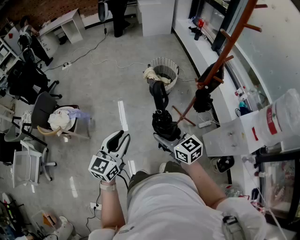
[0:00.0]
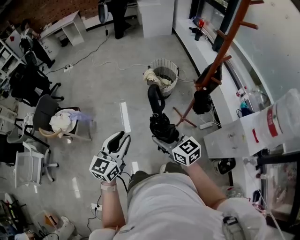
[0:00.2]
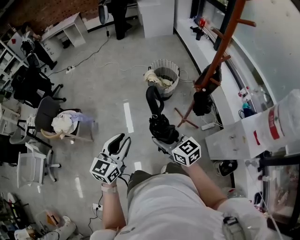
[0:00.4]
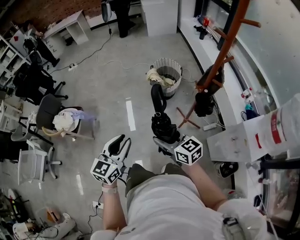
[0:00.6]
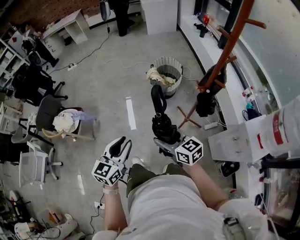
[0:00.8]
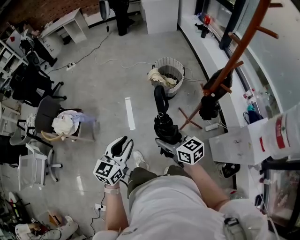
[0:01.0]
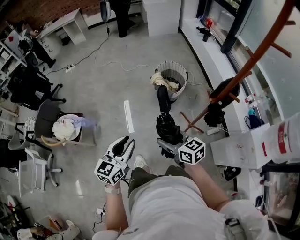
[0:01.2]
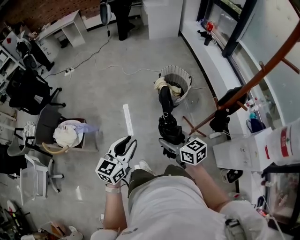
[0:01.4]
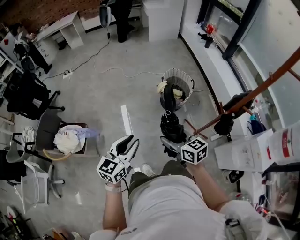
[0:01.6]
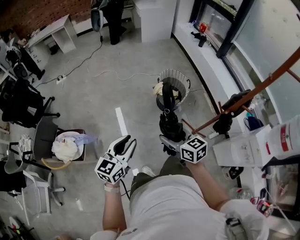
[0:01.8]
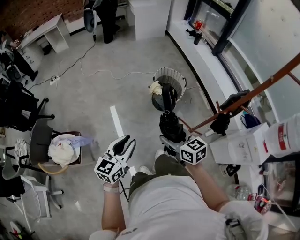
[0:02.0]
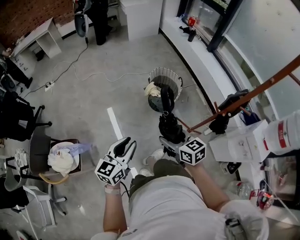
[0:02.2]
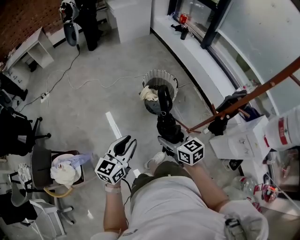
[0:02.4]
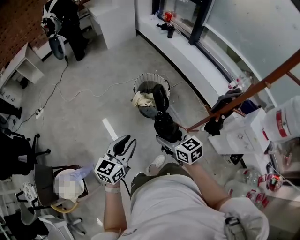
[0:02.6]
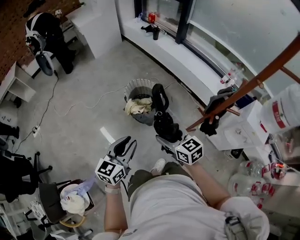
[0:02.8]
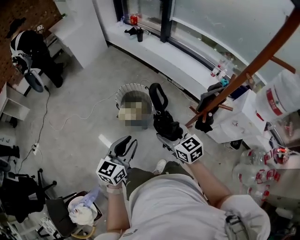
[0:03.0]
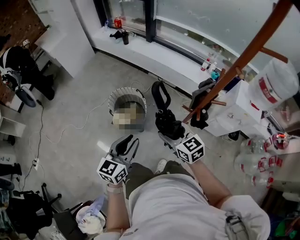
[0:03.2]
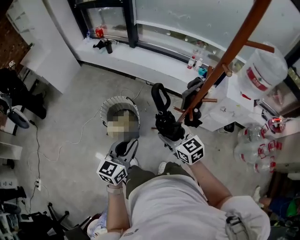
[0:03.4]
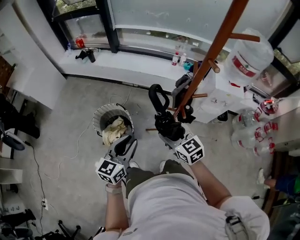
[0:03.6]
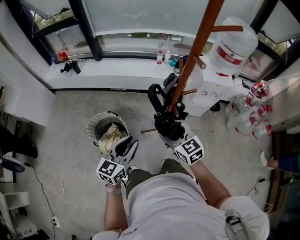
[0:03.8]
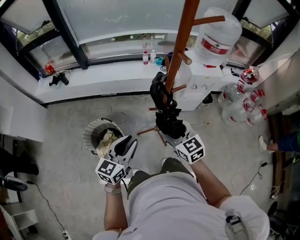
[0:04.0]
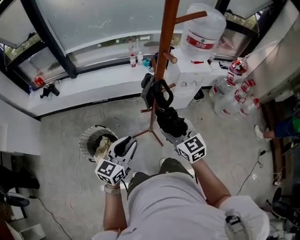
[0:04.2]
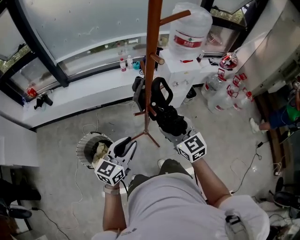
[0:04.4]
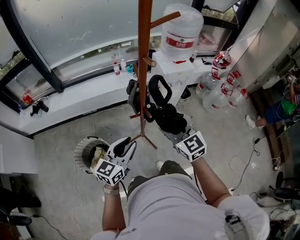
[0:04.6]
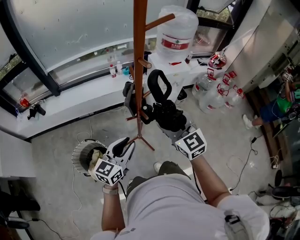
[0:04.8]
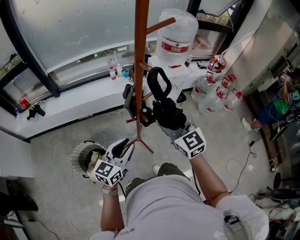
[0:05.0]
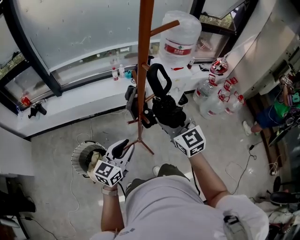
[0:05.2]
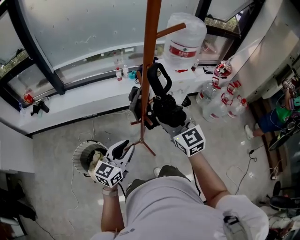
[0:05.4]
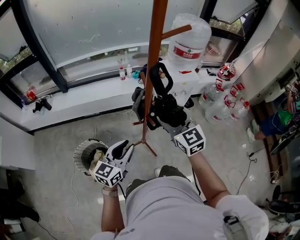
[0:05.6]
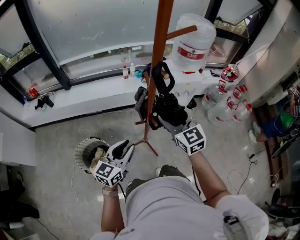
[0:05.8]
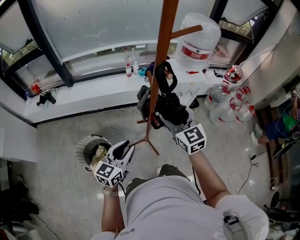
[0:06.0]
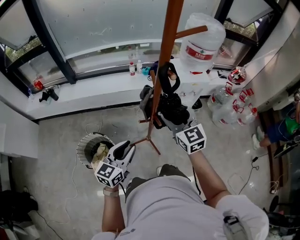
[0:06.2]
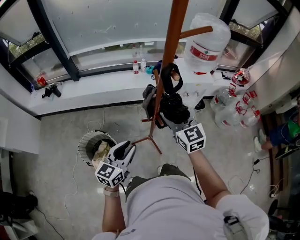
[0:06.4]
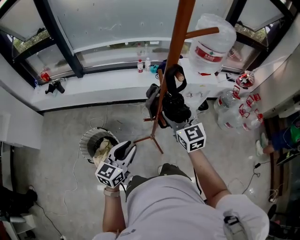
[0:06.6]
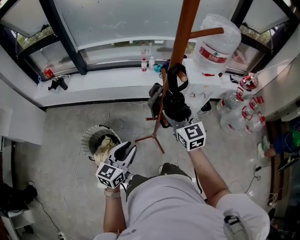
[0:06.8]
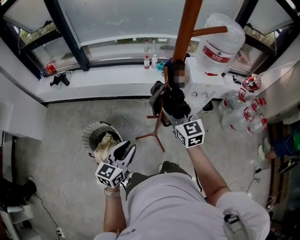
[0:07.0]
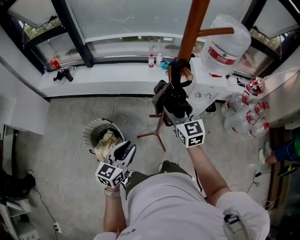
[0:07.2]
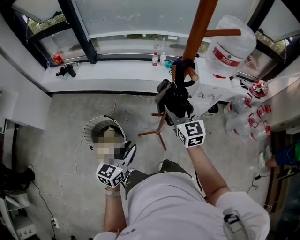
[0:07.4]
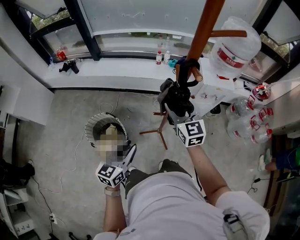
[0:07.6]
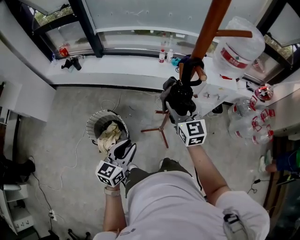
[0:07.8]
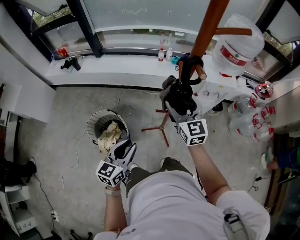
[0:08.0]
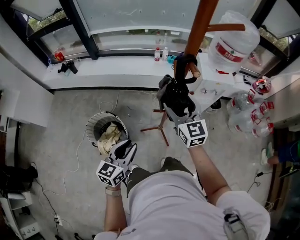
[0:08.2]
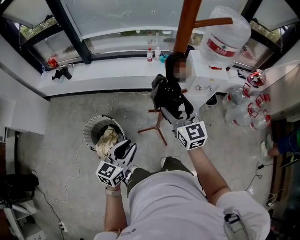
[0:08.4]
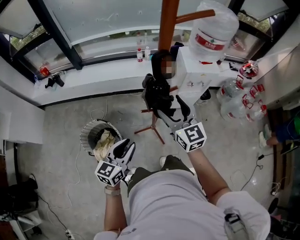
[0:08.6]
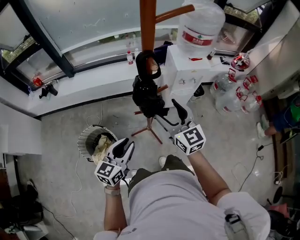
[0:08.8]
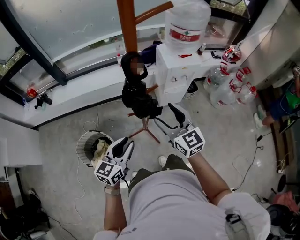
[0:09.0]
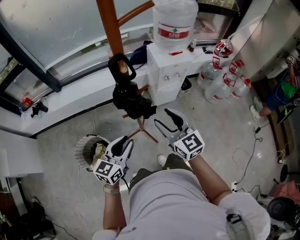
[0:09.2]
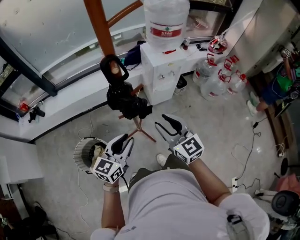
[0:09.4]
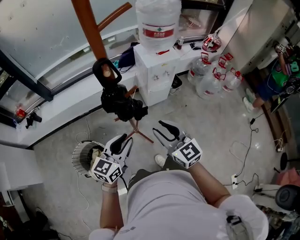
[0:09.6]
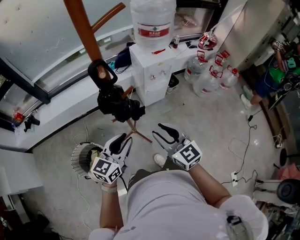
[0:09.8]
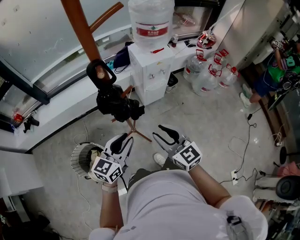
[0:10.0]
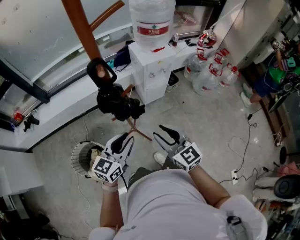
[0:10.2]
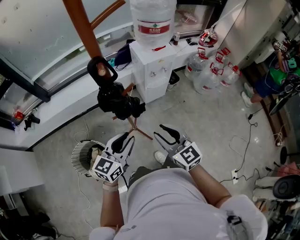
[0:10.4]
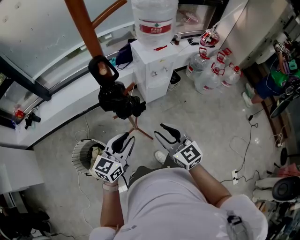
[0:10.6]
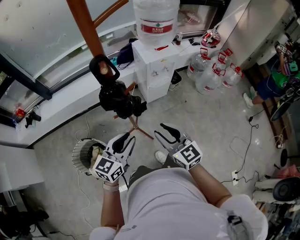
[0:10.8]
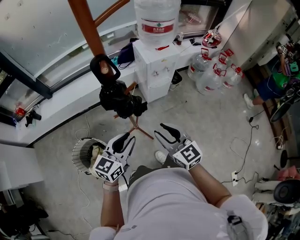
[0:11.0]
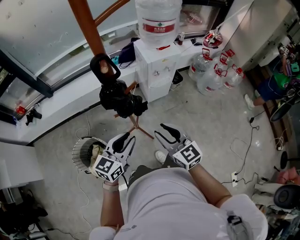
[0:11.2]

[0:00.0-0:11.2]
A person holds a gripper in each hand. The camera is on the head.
0:00.0 to 0:01.6: Both grippers move forward, roughly 20 cm.
0:01.6 to 0:03.2: The left gripper changes place by about 35 cm, and changes its angle by approximately 40 degrees. Meanwhile the right gripper moves roughly 30 cm, and changes its angle by roughly 40 degrees.
0:03.2 to 0:04.8: The right gripper ends up about 20 cm from where it was, and changes its angle by approximately 60 degrees. The left gripper moves some 15 cm, and swivels about 50 degrees.
0:04.8 to 0:06.4: The right gripper is displaced forward by some 10 cm.
0:06.4 to 0:08.0: The left gripper changes place by approximately 5 cm. Meanwhile the right gripper shifts by approximately 5 cm.
0:08.0 to 0:09.6: The right gripper shifts about 20 cm backward and to the right, and closes up; the left gripper travels to the right and forward by approximately 15 cm, and turns by about 30 degrees.
0:09.6 to 0:11.2: The grippers make only small movements.

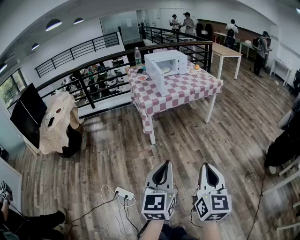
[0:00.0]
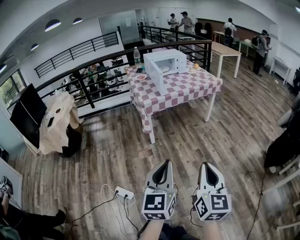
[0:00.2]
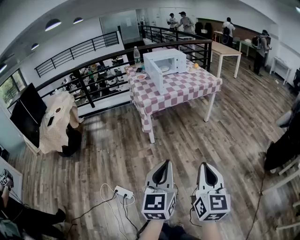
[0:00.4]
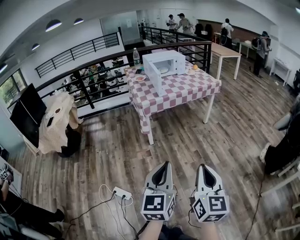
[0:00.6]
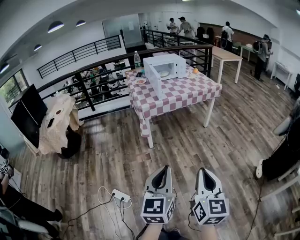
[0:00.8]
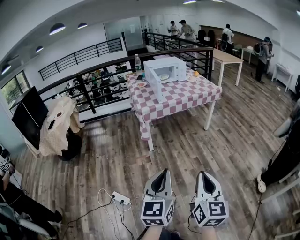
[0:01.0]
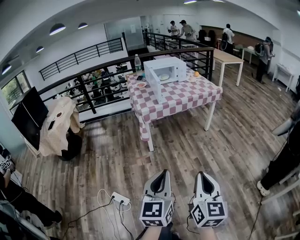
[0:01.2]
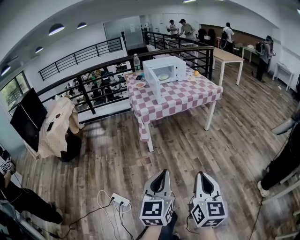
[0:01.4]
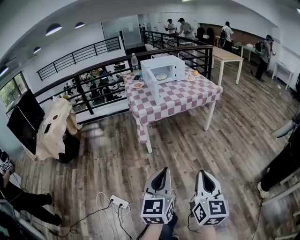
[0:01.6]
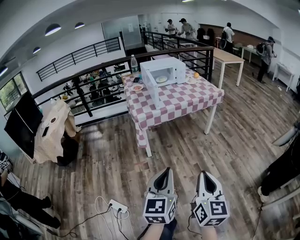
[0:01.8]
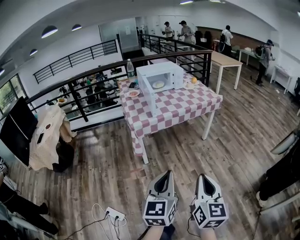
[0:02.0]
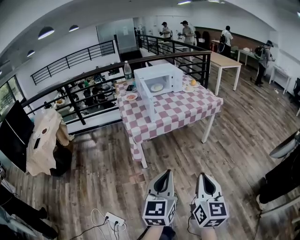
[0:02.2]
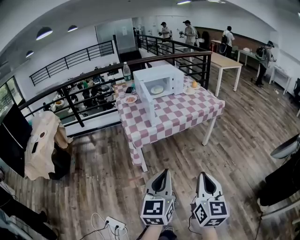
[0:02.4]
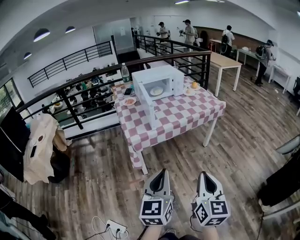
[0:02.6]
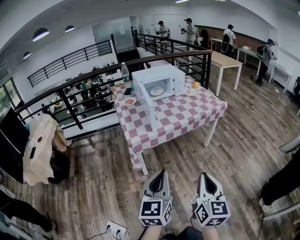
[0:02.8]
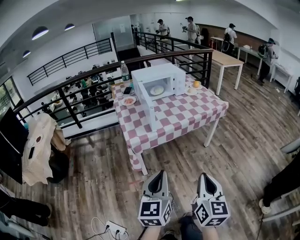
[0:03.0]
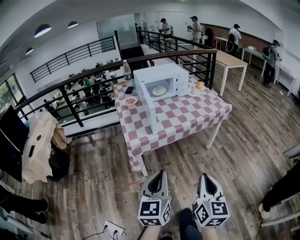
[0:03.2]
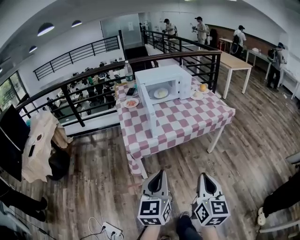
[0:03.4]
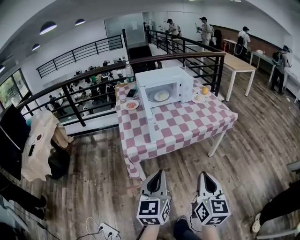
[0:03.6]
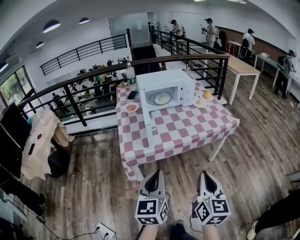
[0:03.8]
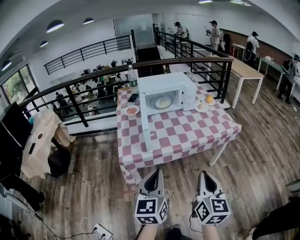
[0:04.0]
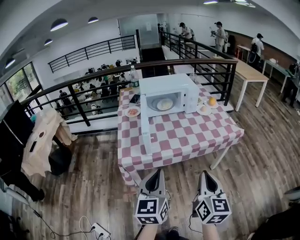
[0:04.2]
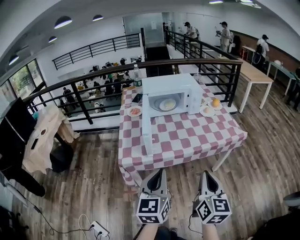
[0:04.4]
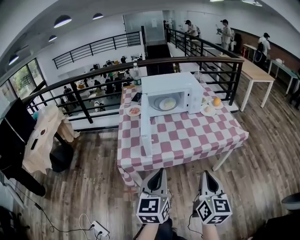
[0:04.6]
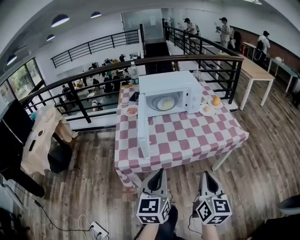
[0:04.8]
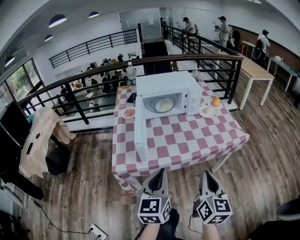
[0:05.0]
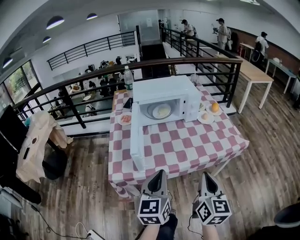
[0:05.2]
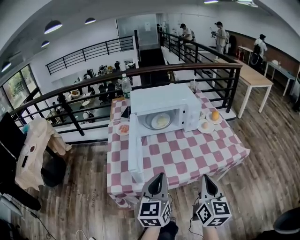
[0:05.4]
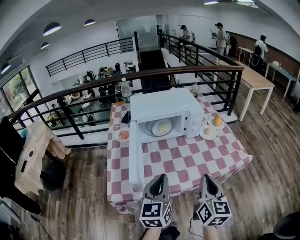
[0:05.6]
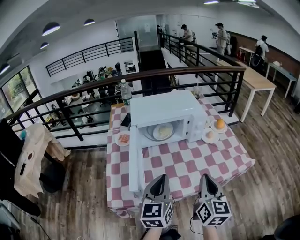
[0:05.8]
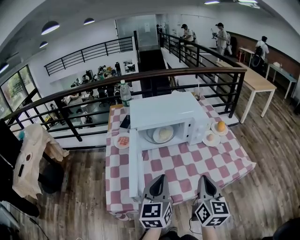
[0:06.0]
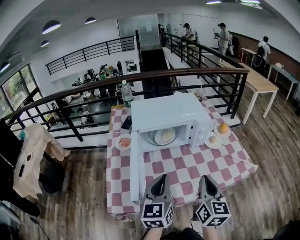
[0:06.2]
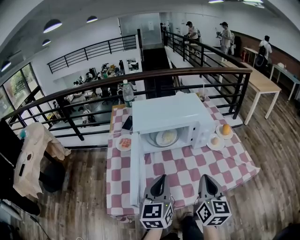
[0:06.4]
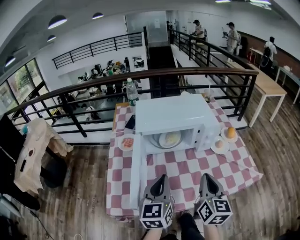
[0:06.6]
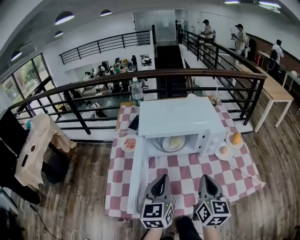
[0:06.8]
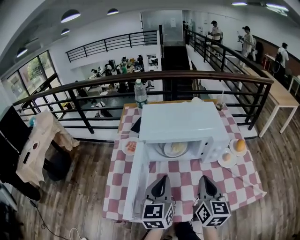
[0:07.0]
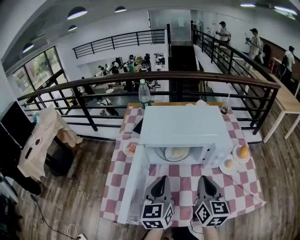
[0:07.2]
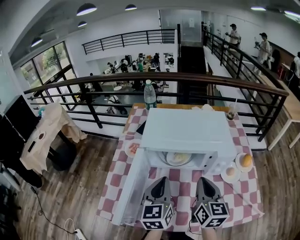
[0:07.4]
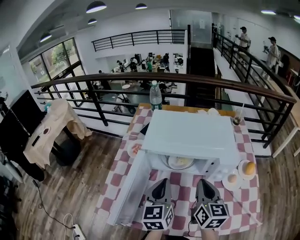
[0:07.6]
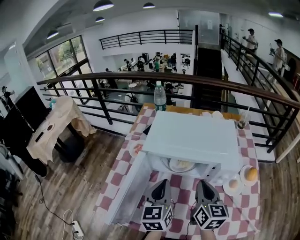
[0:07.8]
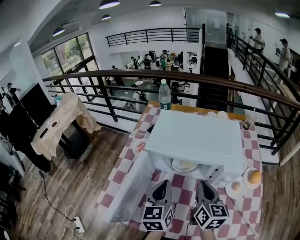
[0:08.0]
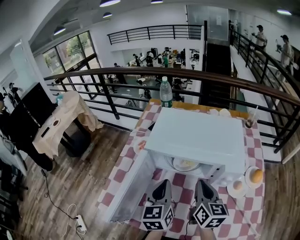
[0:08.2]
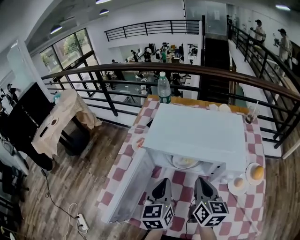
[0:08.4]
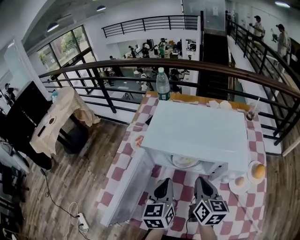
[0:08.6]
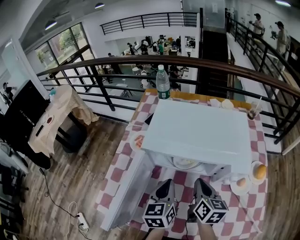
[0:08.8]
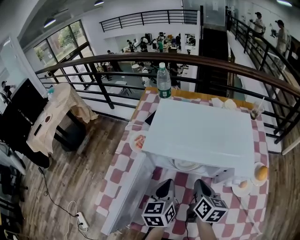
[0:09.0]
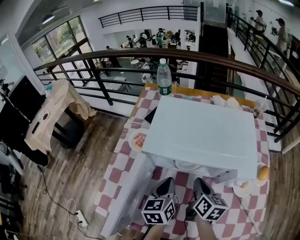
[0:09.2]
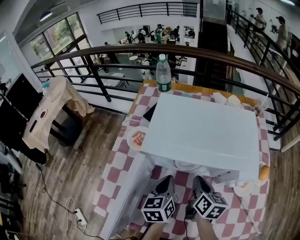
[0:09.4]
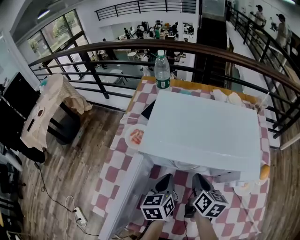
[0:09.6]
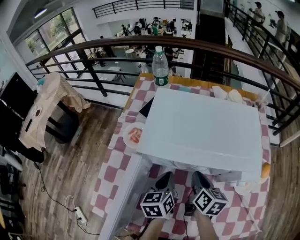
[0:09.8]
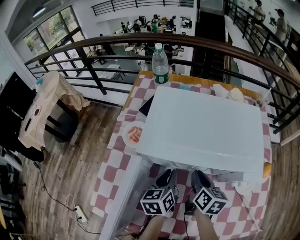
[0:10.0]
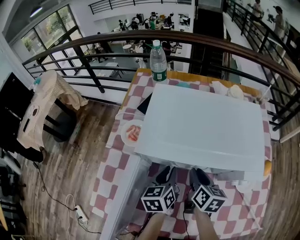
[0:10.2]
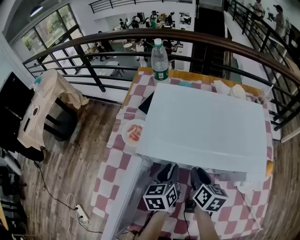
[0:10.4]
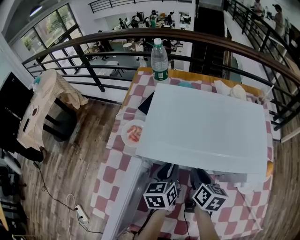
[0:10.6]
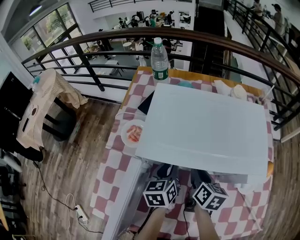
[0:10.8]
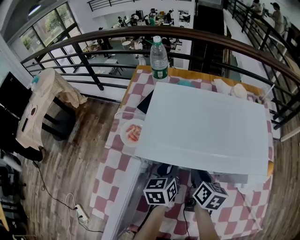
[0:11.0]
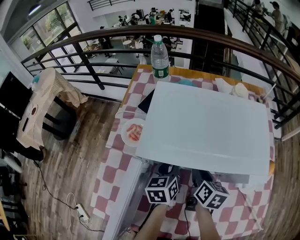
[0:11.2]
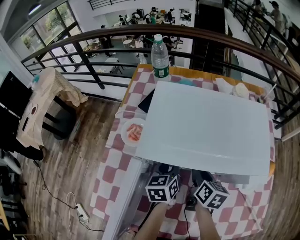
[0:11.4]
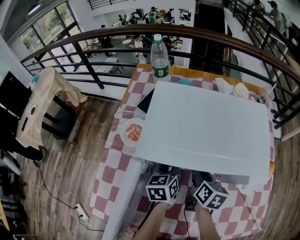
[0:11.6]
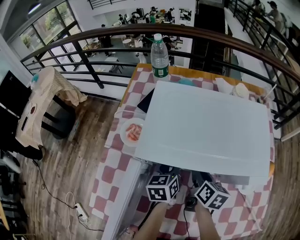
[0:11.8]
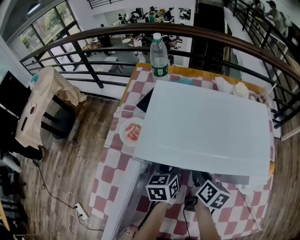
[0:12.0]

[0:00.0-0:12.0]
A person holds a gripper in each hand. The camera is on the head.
0:00.0 to 0:01.6: The grippers both shift forward and to the right by approximately 10 cm.
0:01.6 to 0:03.0: Both grippers travel together forward, approximately 30 cm.
0:03.0 to 0:04.4: Both grippers move forward, some 25 cm.
0:04.4 to 0:06.0: Both grippers move forward, approximately 30 cm.
0:06.0 to 0:07.6: The two grippers go some 20 cm forward. The left gripper changes its angle by about 20 degrees. The right gripper turns by some 20 degrees.
0:07.6 to 0:09.0: The grippers both shift downward and forward by about 10 cm. The right gripper turns by roughly 20 degrees.
0:09.0 to 0:10.4: The right gripper shifts some 10 cm downward and forward, and opens; the left gripper moves forward and downward, some 10 cm, and opens its fingers.
0:10.4 to 0:12.0: There are only small adjustments of the grippers.

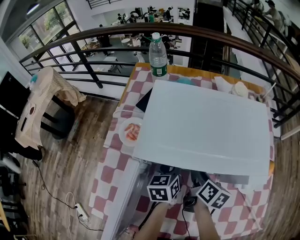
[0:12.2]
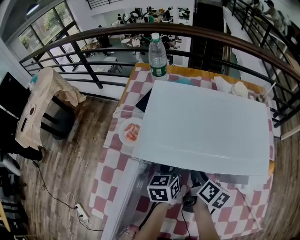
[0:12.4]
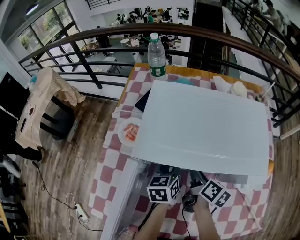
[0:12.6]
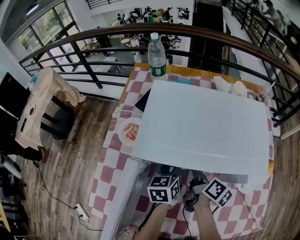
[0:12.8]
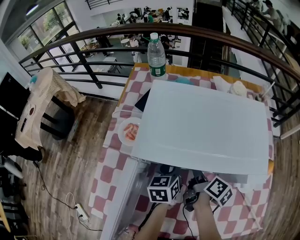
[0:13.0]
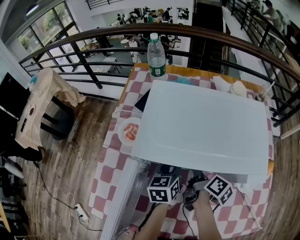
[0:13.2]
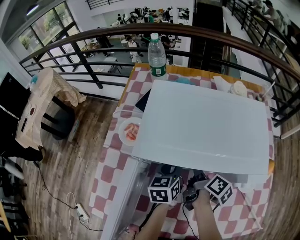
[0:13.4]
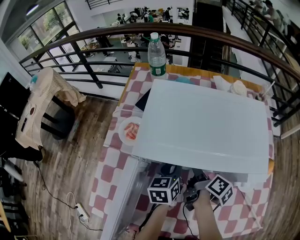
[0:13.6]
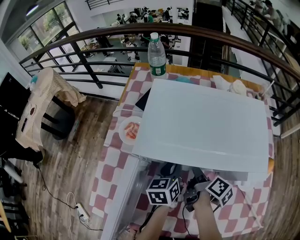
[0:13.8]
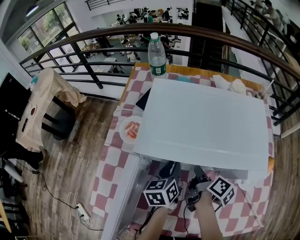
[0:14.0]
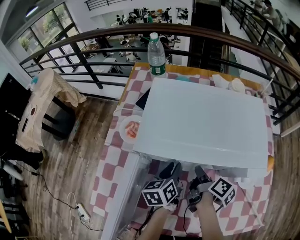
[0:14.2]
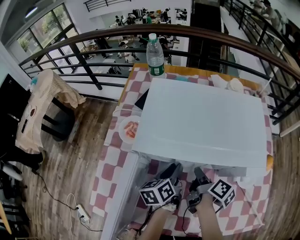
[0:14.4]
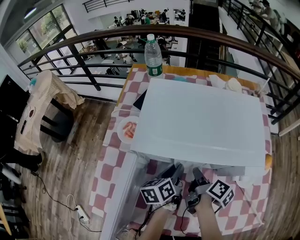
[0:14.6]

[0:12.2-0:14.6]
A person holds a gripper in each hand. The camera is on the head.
0:12.2 to 0:13.4: The right gripper rotates approximately 30 degrees, and closes its fingers.
0:13.4 to 0:14.6: The left gripper changes its angle by roughly 20 degrees.
